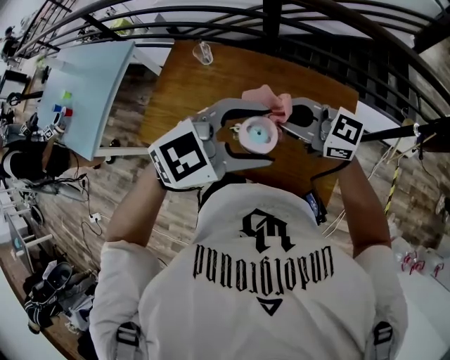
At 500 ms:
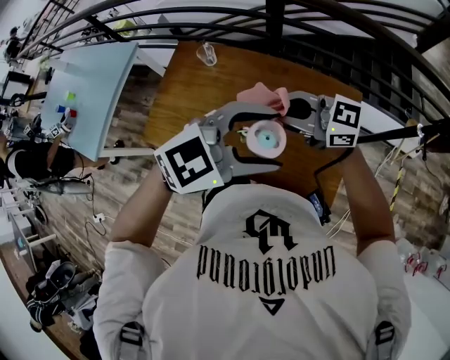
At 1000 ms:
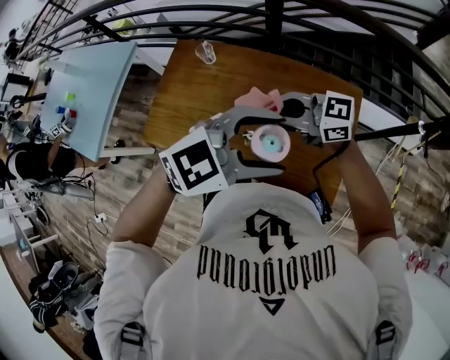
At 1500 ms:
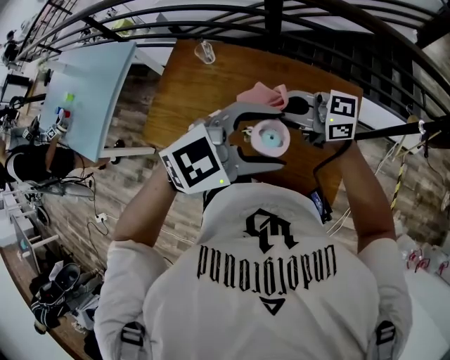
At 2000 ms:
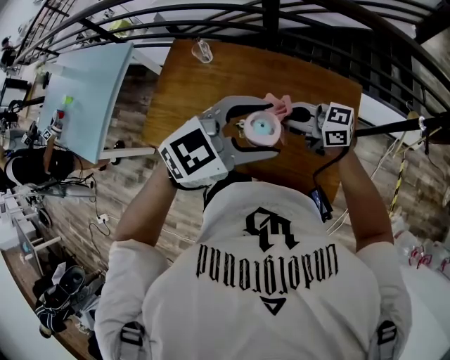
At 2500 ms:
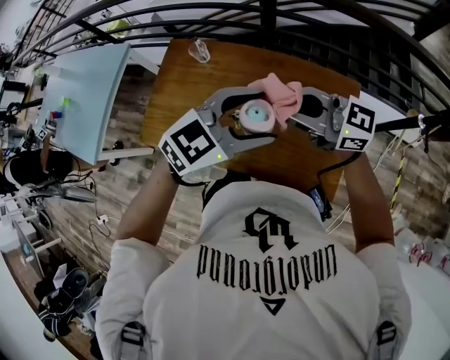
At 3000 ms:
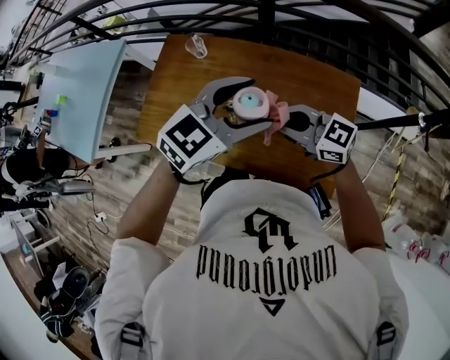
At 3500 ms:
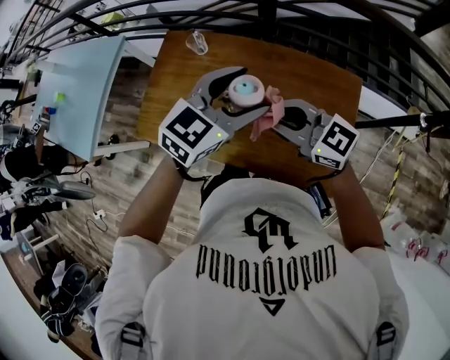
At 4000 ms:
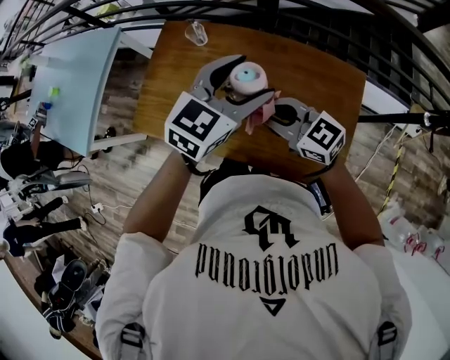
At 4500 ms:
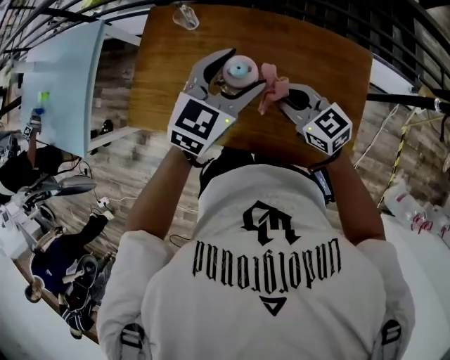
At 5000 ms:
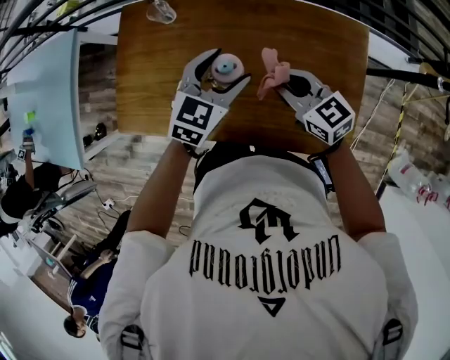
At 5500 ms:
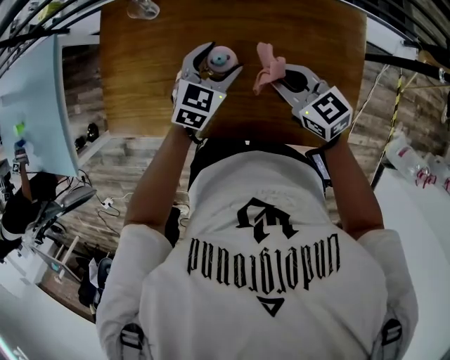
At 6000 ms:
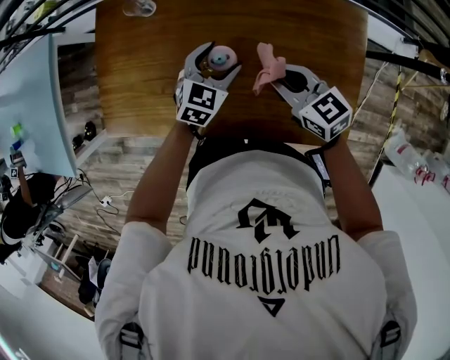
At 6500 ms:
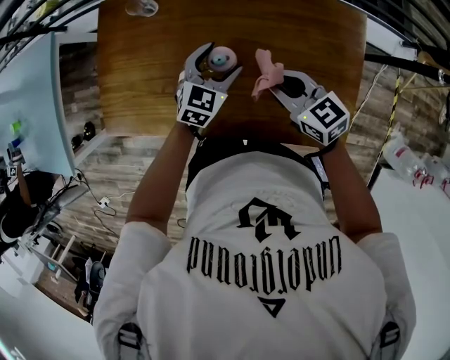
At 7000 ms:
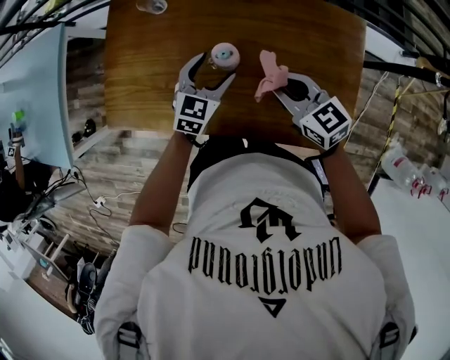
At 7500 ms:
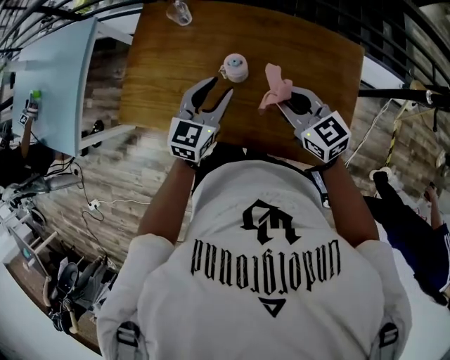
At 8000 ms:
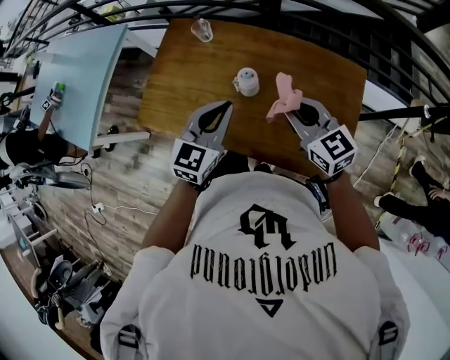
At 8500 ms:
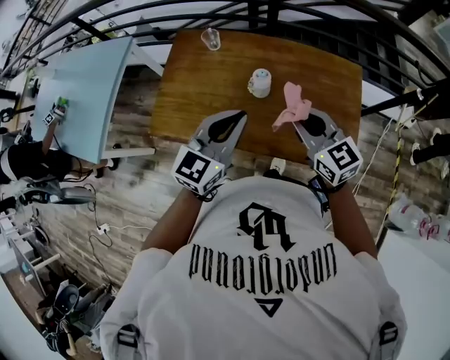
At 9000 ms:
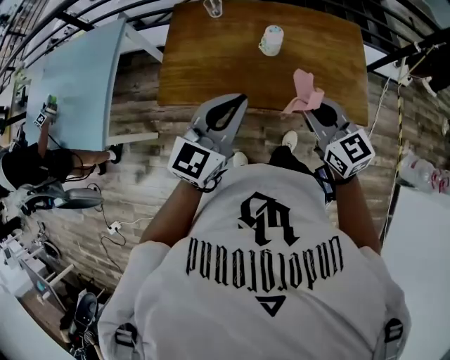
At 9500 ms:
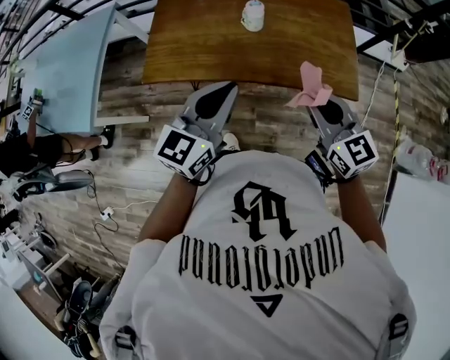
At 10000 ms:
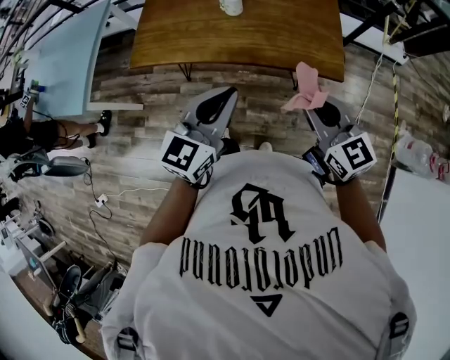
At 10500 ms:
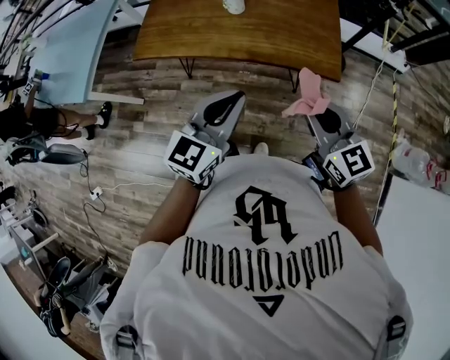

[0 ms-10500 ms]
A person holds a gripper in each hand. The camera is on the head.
0 ms to 2000 ms: The right gripper goes roughly 10 cm downward.
2000 ms to 4000 ms: The right gripper goes up and down, about 10 cm each way, reversing 3 times, and turns by some 20 degrees; the left gripper moves approximately 15 cm, and swivels about 30 degrees.
4000 ms to 6500 ms: The left gripper is displaced downward by roughly 30 cm. Meanwhile the right gripper heads downward, covering approximately 15 cm, and turns by roughly 30 degrees.
6500 ms to 8500 ms: The grippers both shift upward and backward by roughly 30 cm. The left gripper swivels some 30 degrees, and closes its fingers, while the right gripper rotates approximately 20 degrees.
8500 ms to 10500 ms: Both grippers travel together backward, roughly 30 cm.

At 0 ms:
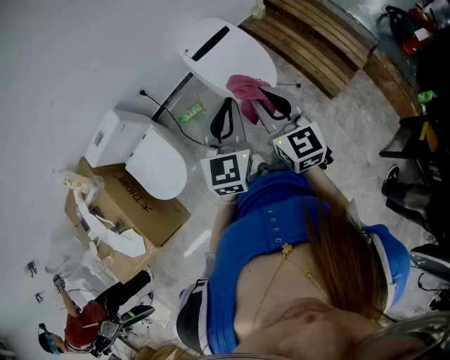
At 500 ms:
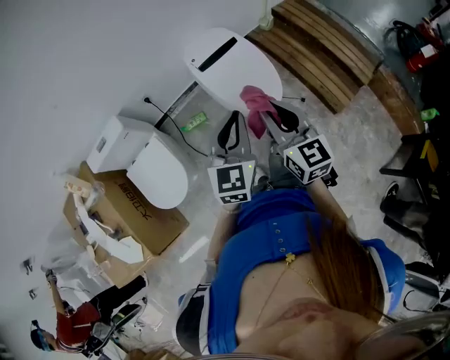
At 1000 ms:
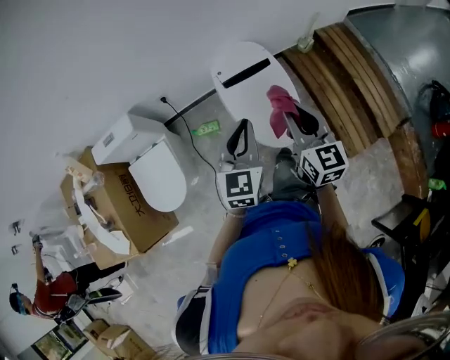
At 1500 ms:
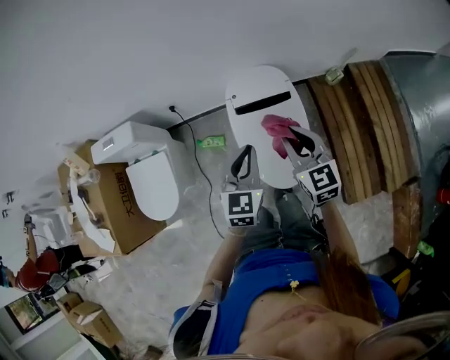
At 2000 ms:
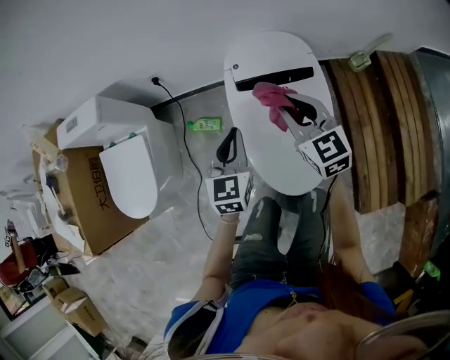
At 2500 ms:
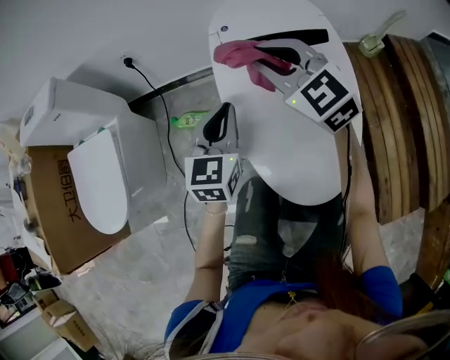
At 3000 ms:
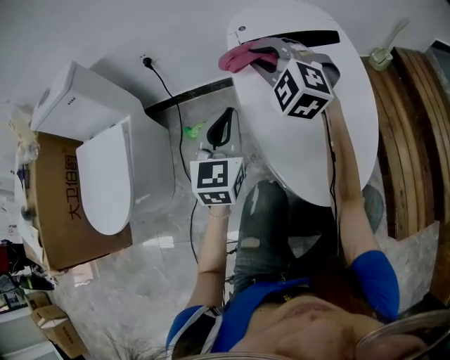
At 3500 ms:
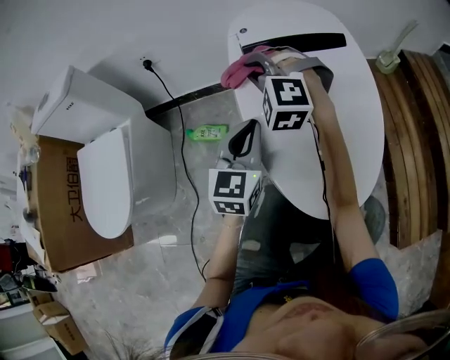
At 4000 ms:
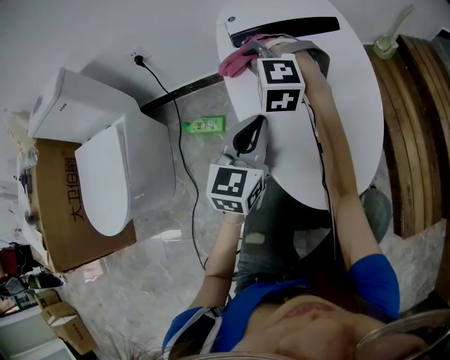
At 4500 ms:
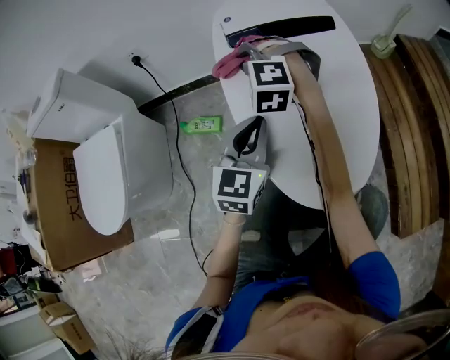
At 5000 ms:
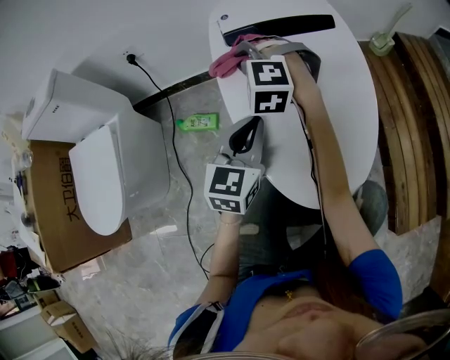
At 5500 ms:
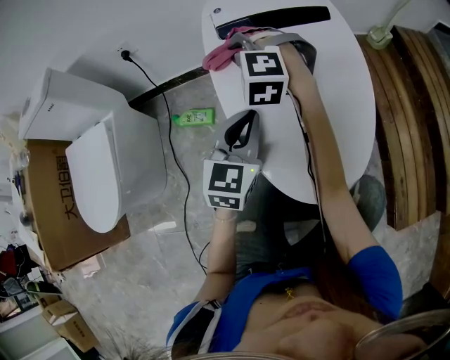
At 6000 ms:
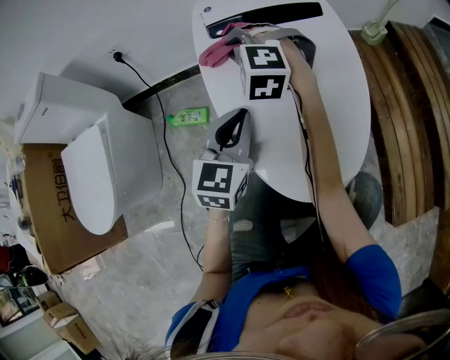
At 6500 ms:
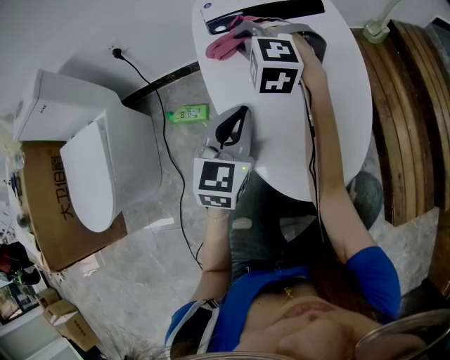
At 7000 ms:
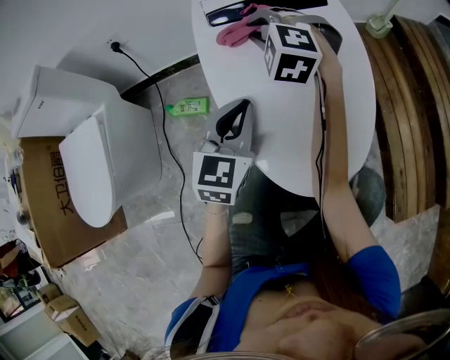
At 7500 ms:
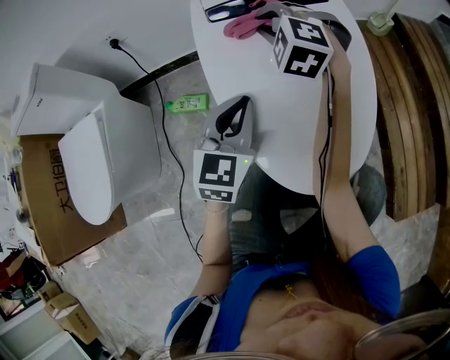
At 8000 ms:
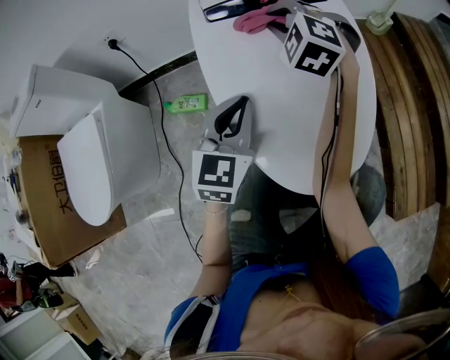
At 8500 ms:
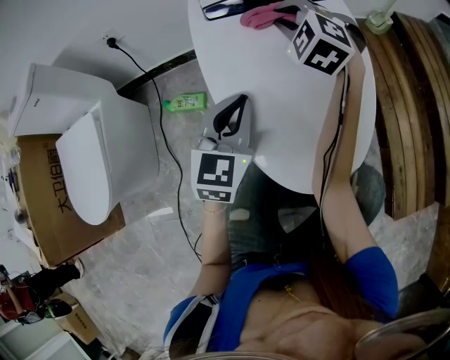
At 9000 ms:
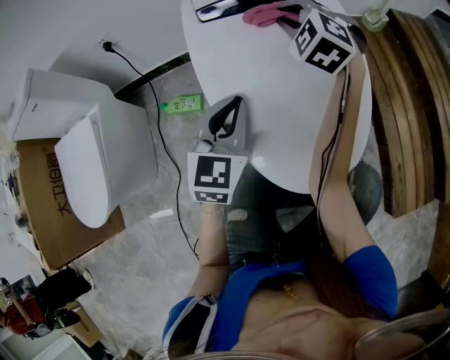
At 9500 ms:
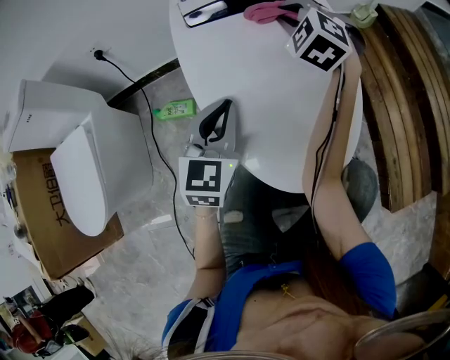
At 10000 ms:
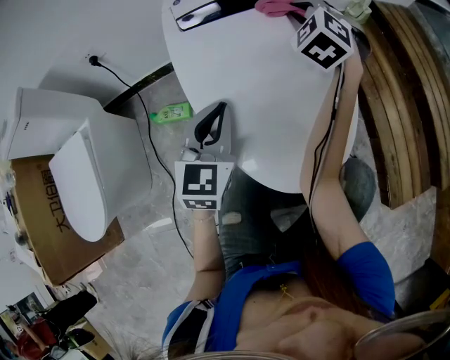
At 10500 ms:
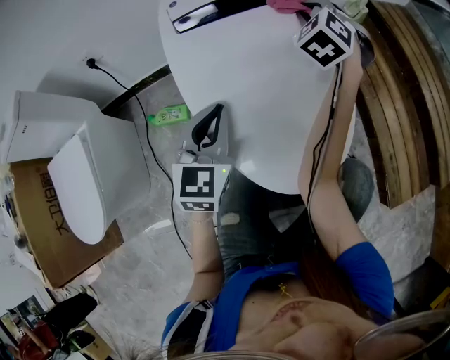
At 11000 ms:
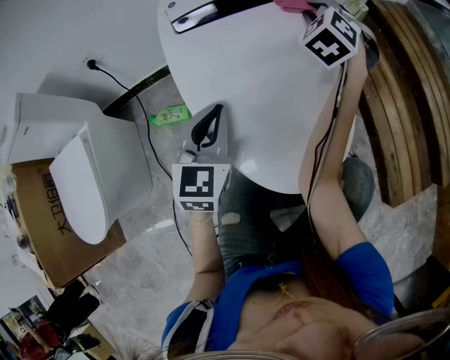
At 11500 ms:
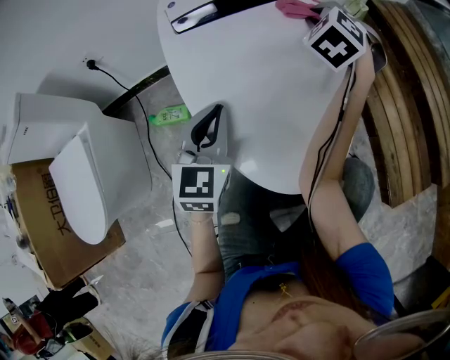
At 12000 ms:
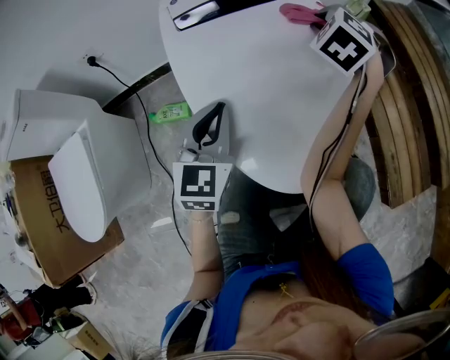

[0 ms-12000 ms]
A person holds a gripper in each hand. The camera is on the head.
0 ms to 2000 ms: The left gripper shifts roughly 40 cm downward, and swivels roughly 40 degrees. The right gripper moves roughly 60 cm, and turns by approximately 40 degrees.
2000 ms to 4000 ms: The right gripper goes approximately 30 cm downward and to the left, and twists about 60 degrees counterclockwise, seen from behind, while the left gripper shifts approximately 25 cm downward.
4000 ms to 6000 ms: The grippers move only a little.
6000 ms to 8000 ms: The right gripper heads to the right, covering about 10 cm.
8000 ms to 10000 ms: The right gripper heads to the right, covering roughly 10 cm, and rotates some 20 degrees.
10000 ms to 12000 ms: The right gripper goes about 5 cm to the right.

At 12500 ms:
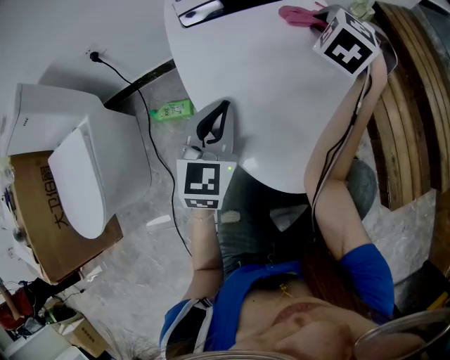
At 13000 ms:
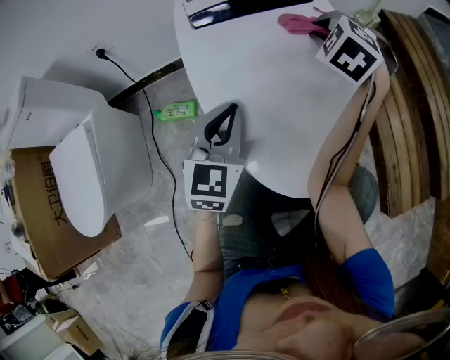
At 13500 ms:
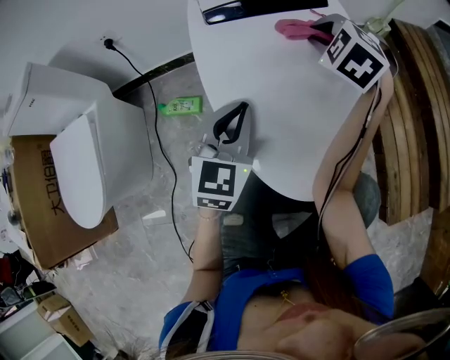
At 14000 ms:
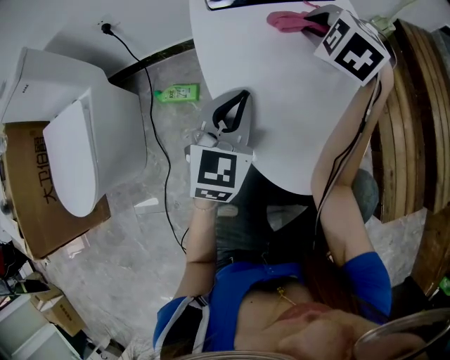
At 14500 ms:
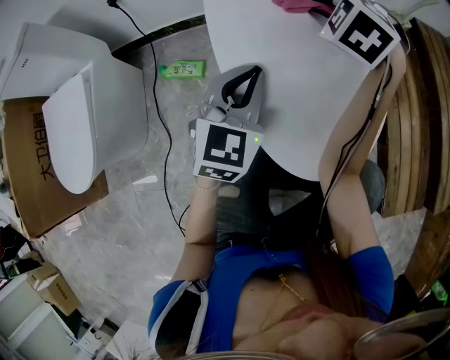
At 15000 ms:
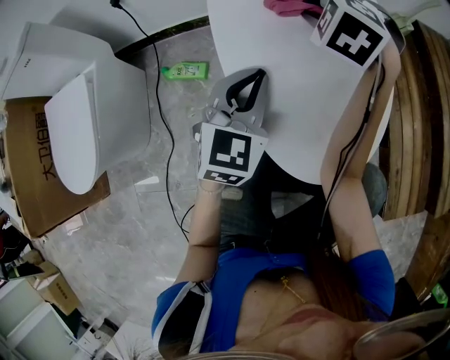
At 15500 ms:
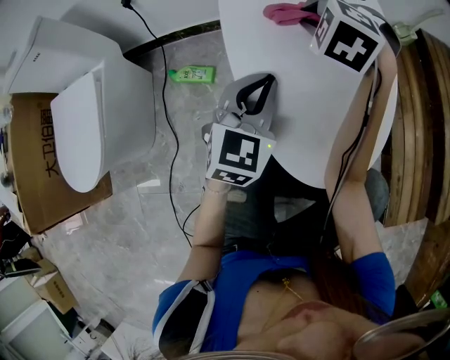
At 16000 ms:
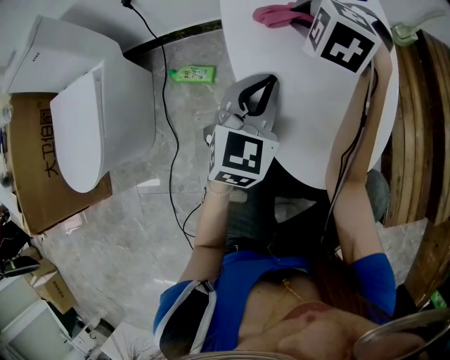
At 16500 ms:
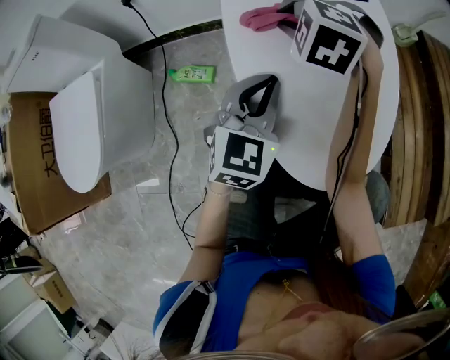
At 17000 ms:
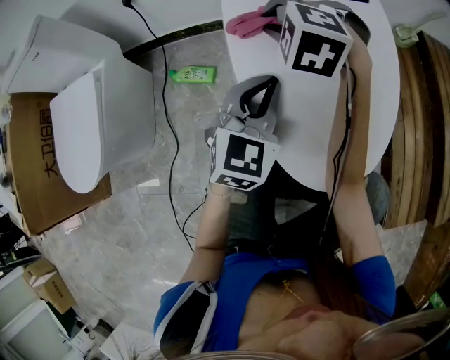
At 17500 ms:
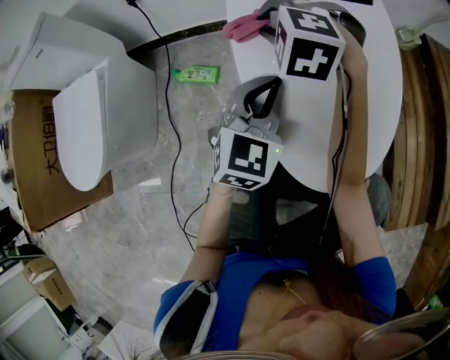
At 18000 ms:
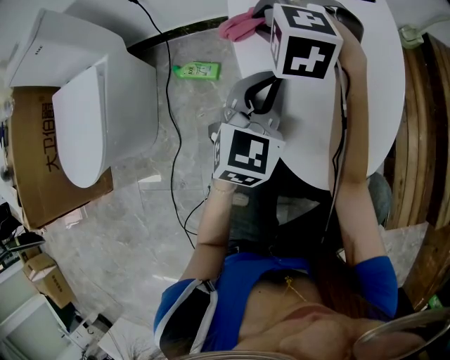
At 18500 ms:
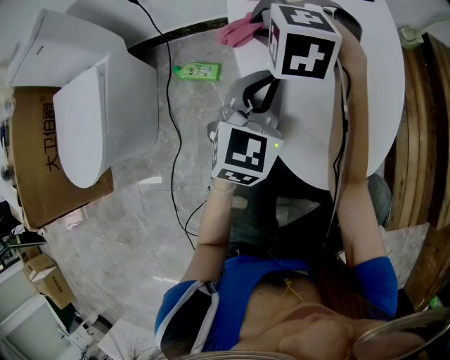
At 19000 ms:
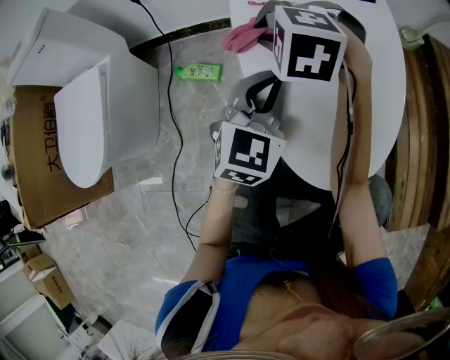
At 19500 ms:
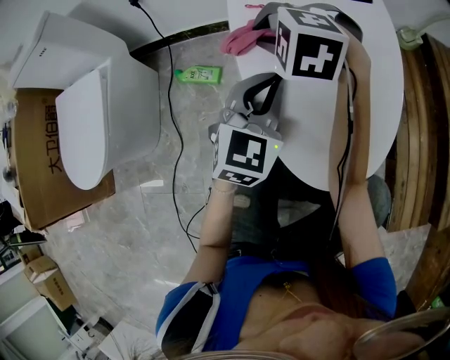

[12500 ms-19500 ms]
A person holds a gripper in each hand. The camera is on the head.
12500 ms to 14500 ms: The right gripper moves to the left, about 10 cm.
14500 ms to 16000 ms: The right gripper moves to the left, roughly 5 cm.
16000 ms to 17500 ms: The right gripper travels to the left by some 10 cm.
17500 ms to 19500 ms: The grippers move only a little.
